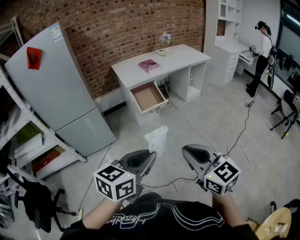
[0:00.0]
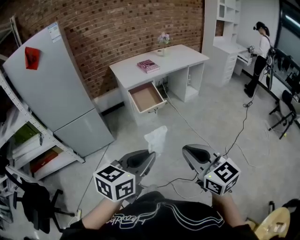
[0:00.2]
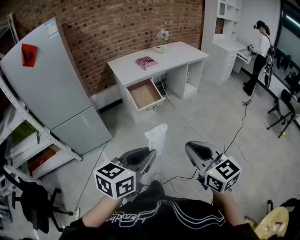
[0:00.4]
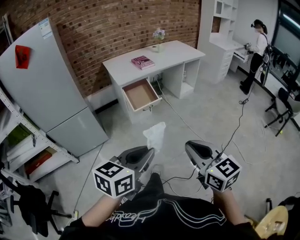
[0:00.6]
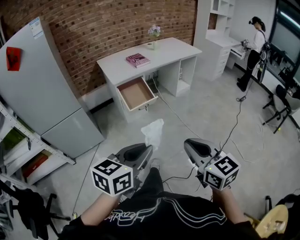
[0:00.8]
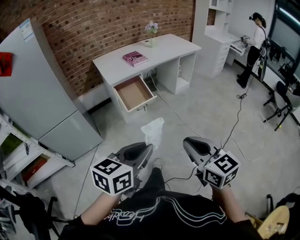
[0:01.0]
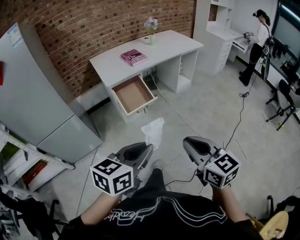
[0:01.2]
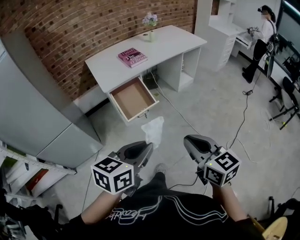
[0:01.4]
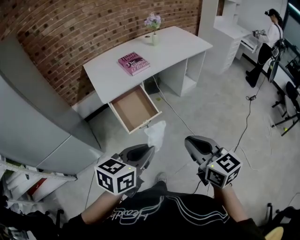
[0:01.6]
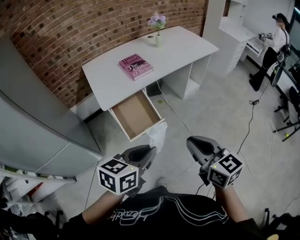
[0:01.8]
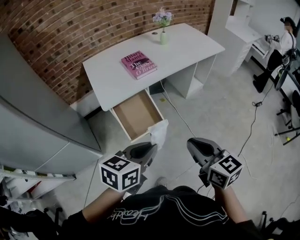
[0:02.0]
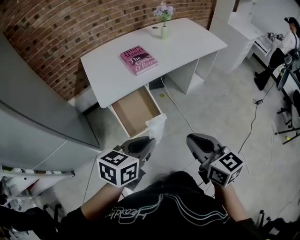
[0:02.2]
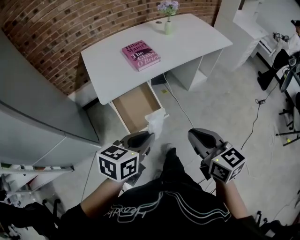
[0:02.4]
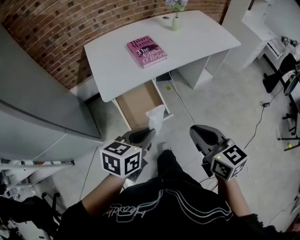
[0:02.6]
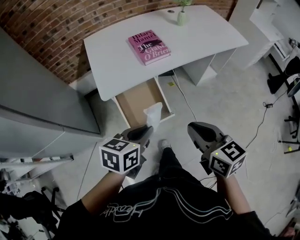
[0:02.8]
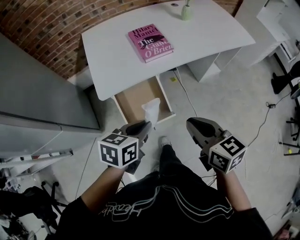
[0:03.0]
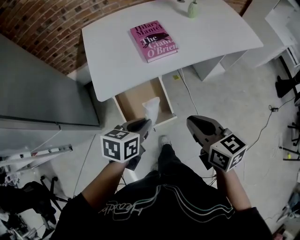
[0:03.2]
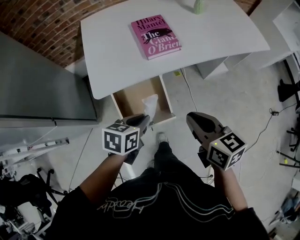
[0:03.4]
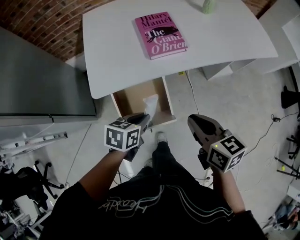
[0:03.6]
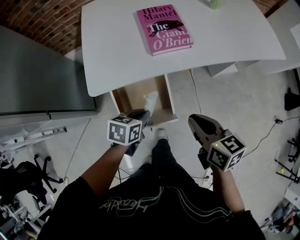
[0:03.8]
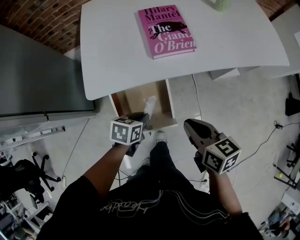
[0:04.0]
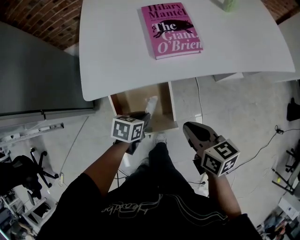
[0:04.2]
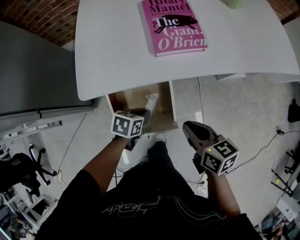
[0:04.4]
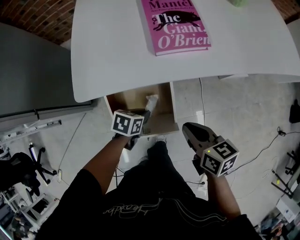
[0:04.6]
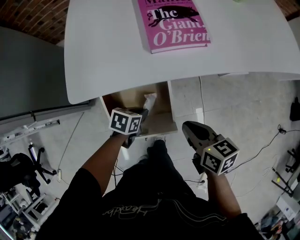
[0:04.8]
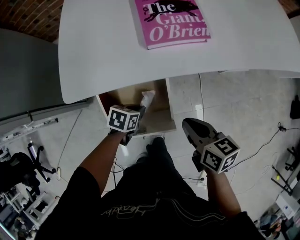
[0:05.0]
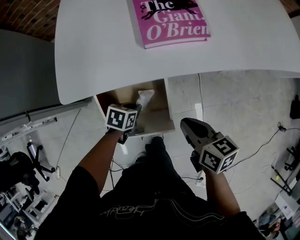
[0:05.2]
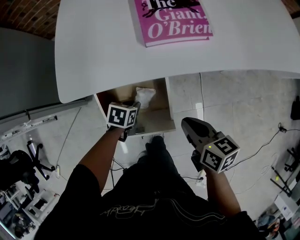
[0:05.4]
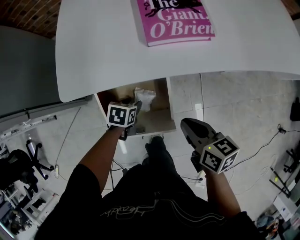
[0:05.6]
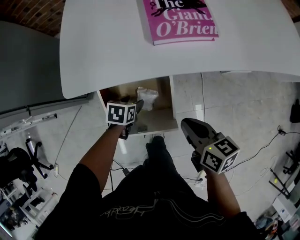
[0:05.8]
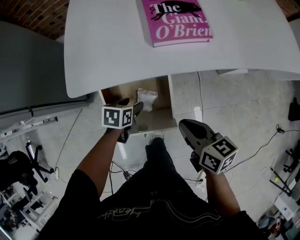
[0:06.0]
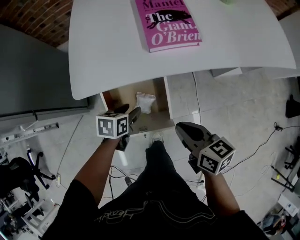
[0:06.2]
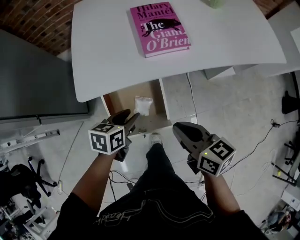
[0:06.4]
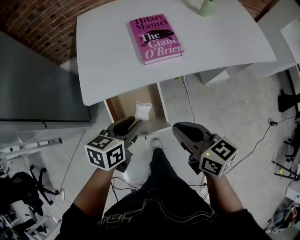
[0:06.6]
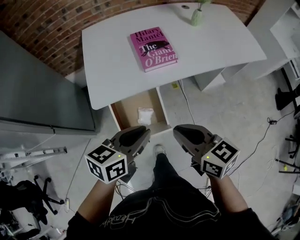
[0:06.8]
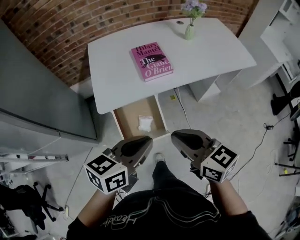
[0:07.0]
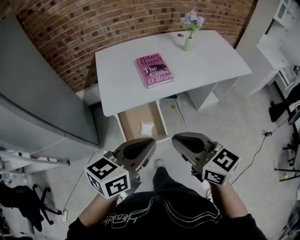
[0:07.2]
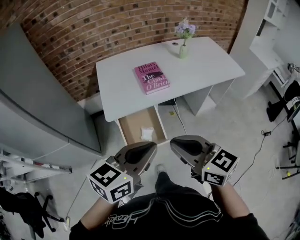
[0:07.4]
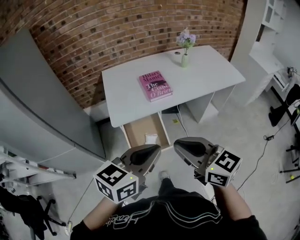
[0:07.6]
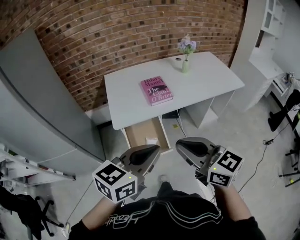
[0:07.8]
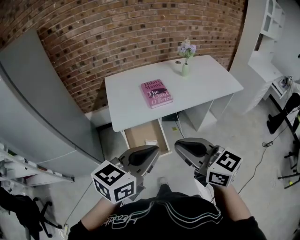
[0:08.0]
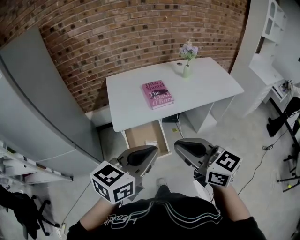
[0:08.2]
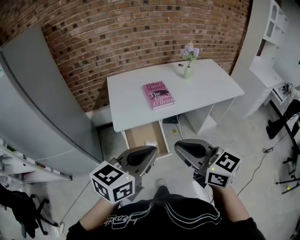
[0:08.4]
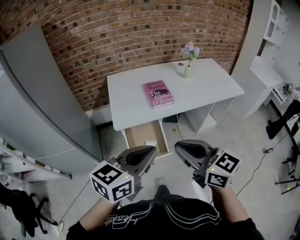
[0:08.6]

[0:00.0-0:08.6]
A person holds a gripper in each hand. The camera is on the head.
0:00.0 to 0:01.4: The two grippers go some 35 cm forward.
0:01.4 to 0:02.8: Both grippers travel together forward, some 40 cm.
0:02.8 to 0:04.4: Both grippers travel together downward and forward, some 35 cm. The right gripper changes its angle by roughly 20 degrees. The left gripper turns by some 30 degrees.
0:04.4 to 0:05.8: The two grippers go about 10 cm downward. The left gripper opens.
0:05.8 to 0:07.2: The right gripper shifts roughly 40 cm upward and backward, and swivels about 30 degrees; the left gripper travels upward by about 50 cm, angles its fingers upward, by approximately 50 degrees, and closes.
0:07.2 to 0:08.6: Both grippers travel together upward and backward, about 10 cm.

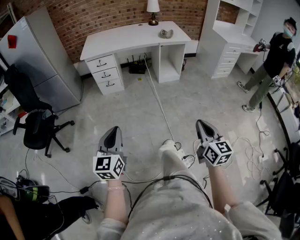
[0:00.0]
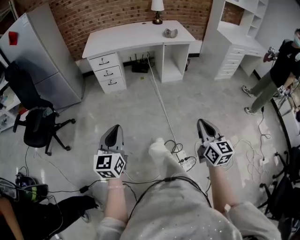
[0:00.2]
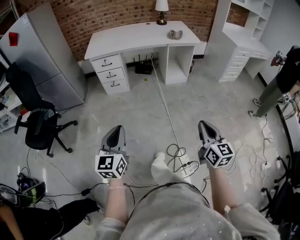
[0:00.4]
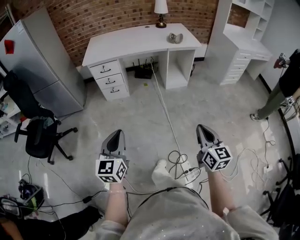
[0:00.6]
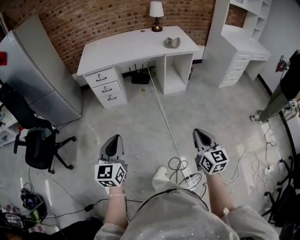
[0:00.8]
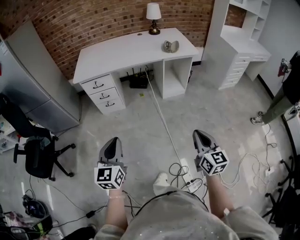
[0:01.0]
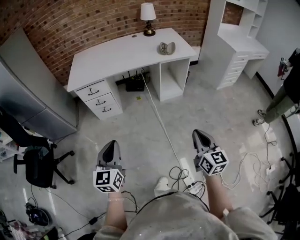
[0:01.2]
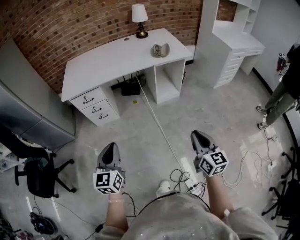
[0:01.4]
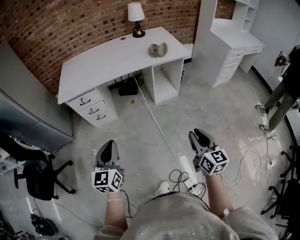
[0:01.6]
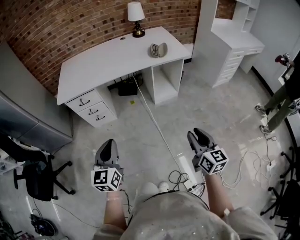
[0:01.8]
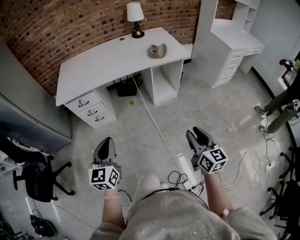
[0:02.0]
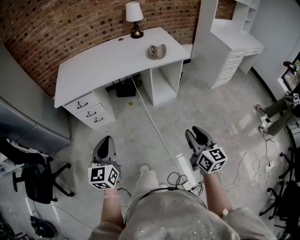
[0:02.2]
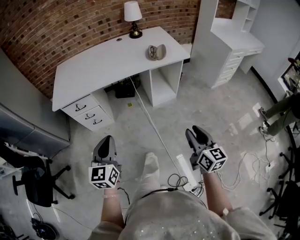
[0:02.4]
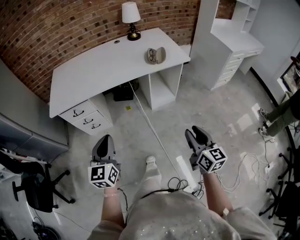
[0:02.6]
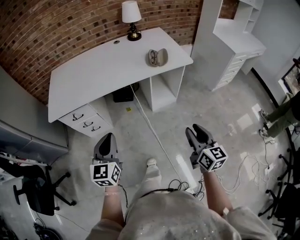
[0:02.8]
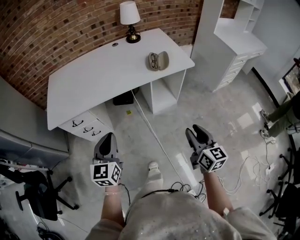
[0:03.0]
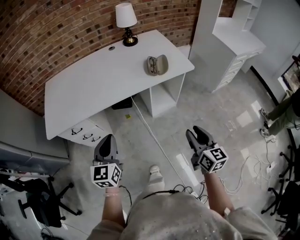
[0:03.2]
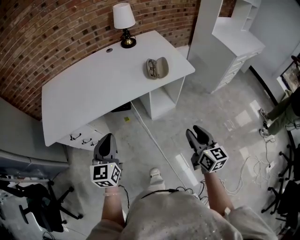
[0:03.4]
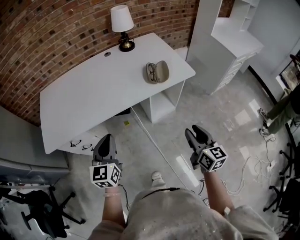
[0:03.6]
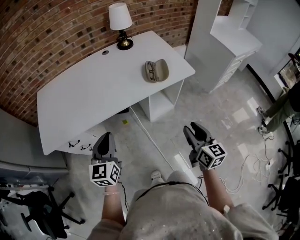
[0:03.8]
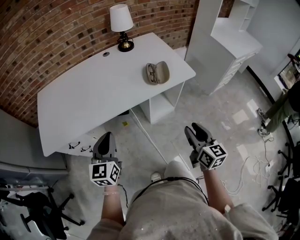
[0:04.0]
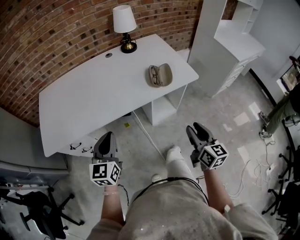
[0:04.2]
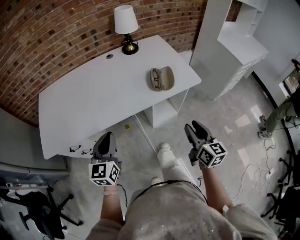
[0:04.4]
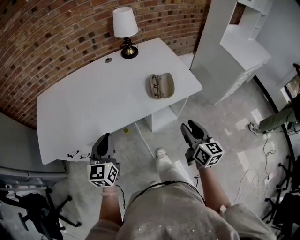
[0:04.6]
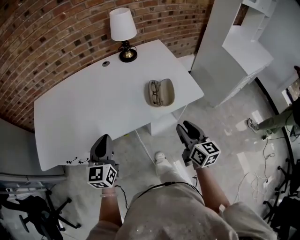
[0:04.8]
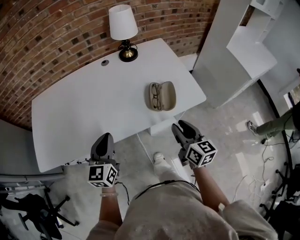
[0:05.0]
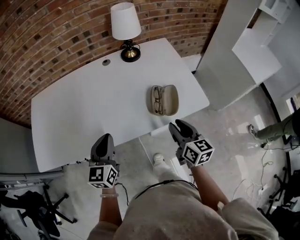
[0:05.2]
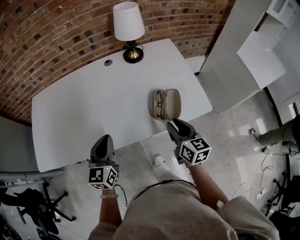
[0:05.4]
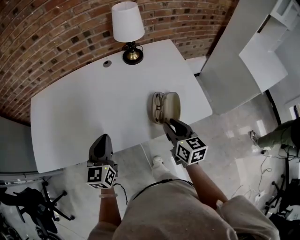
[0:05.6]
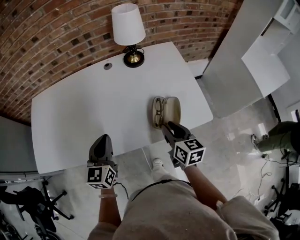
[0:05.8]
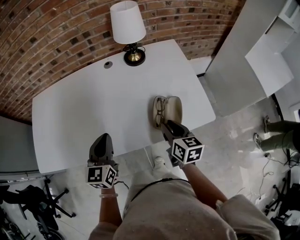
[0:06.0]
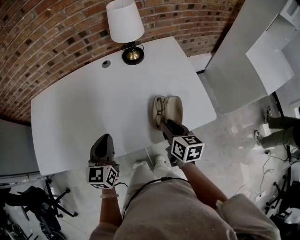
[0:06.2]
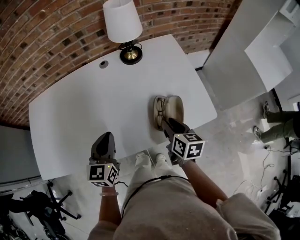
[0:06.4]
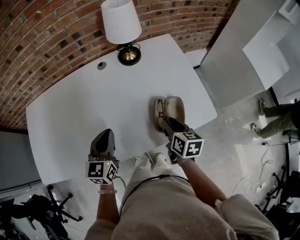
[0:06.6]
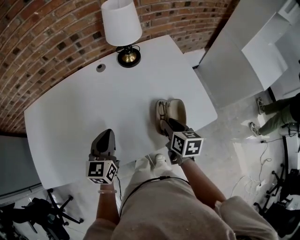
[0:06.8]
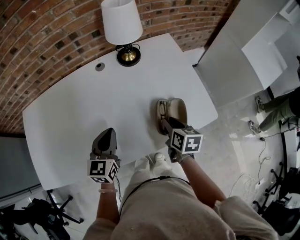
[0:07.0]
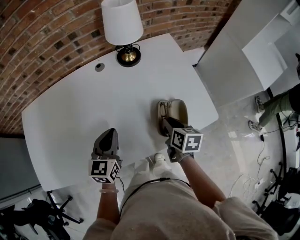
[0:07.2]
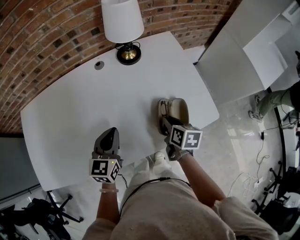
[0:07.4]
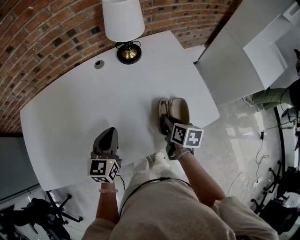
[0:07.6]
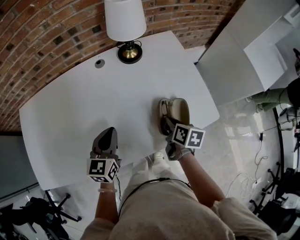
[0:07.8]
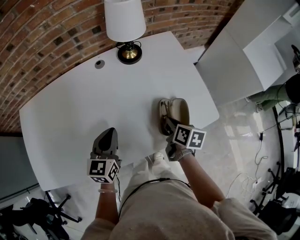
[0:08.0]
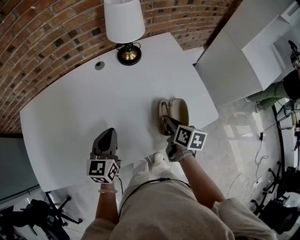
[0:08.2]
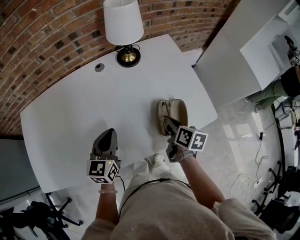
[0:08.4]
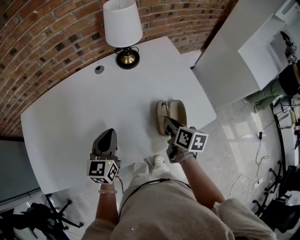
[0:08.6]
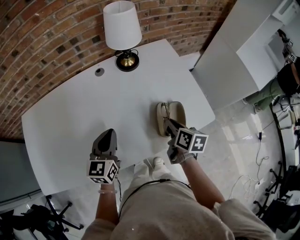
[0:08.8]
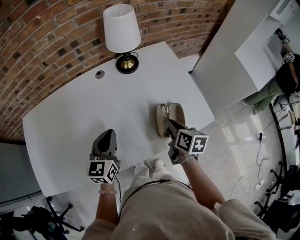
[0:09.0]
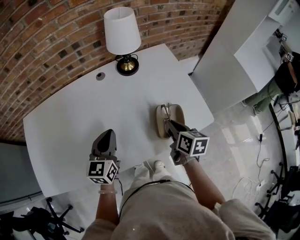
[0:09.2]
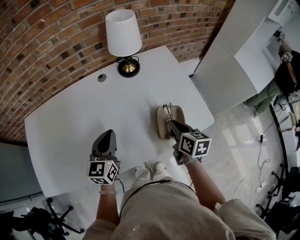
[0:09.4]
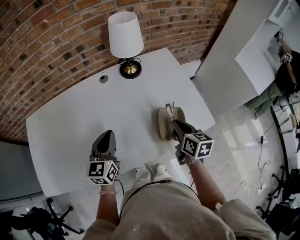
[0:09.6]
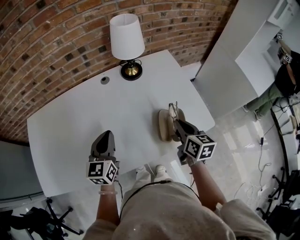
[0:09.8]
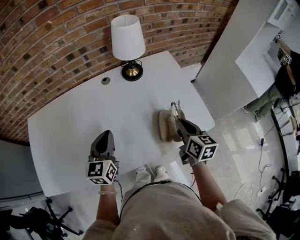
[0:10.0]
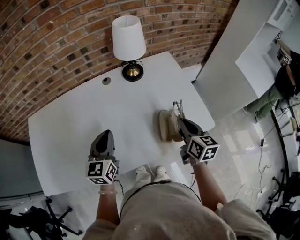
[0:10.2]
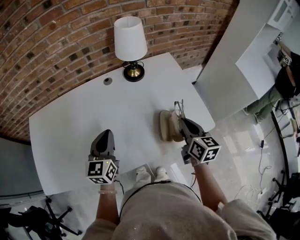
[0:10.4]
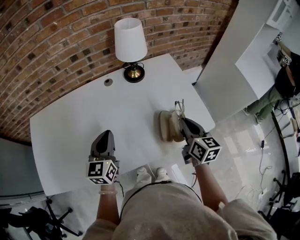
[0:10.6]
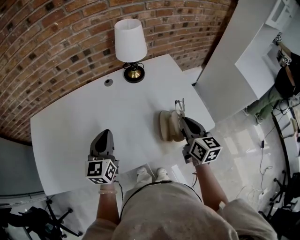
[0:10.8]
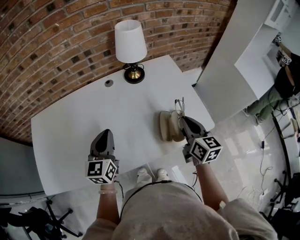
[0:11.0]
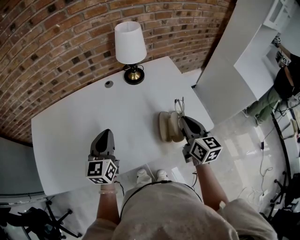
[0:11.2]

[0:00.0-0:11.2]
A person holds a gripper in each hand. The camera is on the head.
0:00.0 to 0:01.6: Both grippers travel together forward, about 35 cm. The right gripper opens its fingers.
0:01.6 to 0:03.2: The grippers both shift forward by some 25 cm.
0:03.2 to 0:04.8: Both grippers move forward, approximately 25 cm.
0:04.8 to 0:06.4: Both grippers move forward, roughly 15 cm. The right gripper swivels about 20 degrees.
0:06.4 to 0:08.0: The right gripper moves approximately 5 cm, and closes up; the left gripper travels forward by roughly 5 cm.
0:08.0 to 0:09.6: The right gripper heads upward, covering approximately 10 cm, and turns by about 20 degrees.
0:09.6 to 0:11.2: The right gripper is displaced upward by approximately 5 cm.

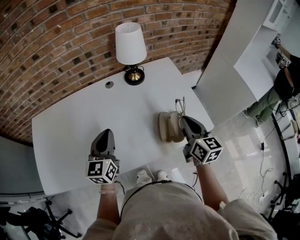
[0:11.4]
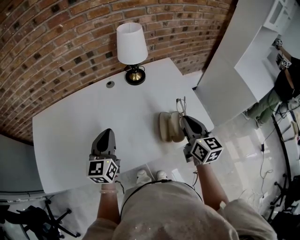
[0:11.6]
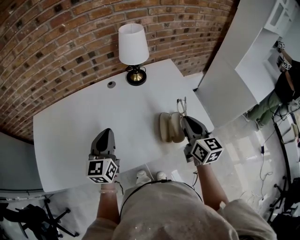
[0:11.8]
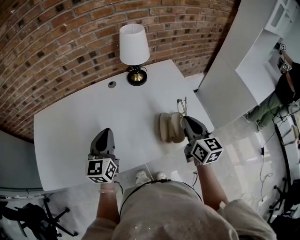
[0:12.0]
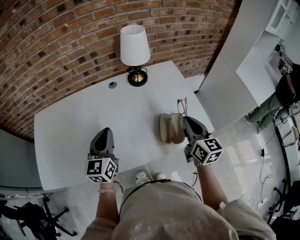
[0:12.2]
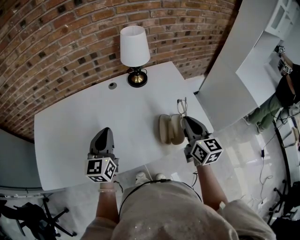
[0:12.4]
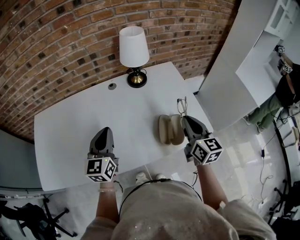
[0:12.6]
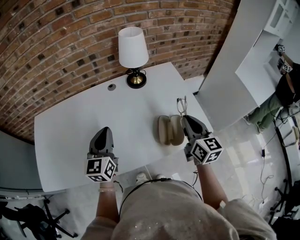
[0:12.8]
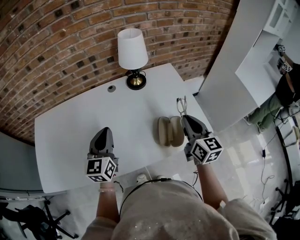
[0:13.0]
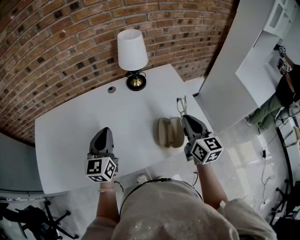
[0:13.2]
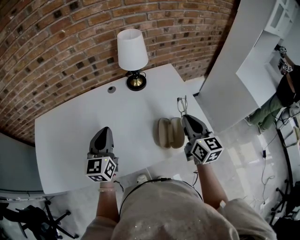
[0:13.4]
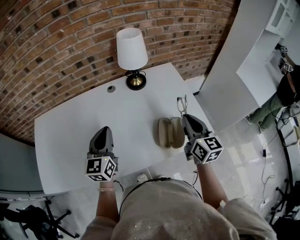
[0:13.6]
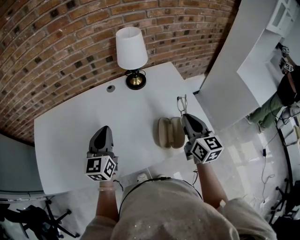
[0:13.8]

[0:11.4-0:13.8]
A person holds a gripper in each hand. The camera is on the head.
0:11.4 to 0:13.8: The grippers make only small movements.

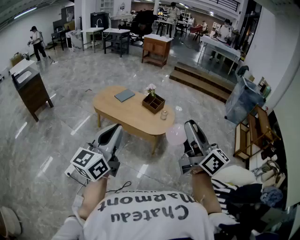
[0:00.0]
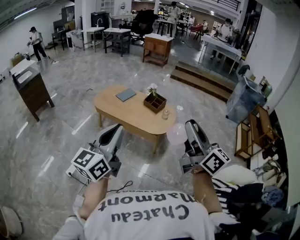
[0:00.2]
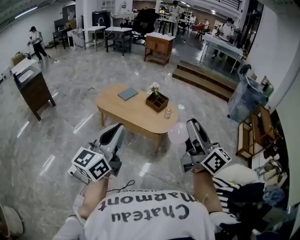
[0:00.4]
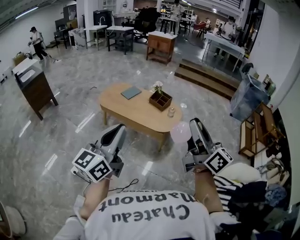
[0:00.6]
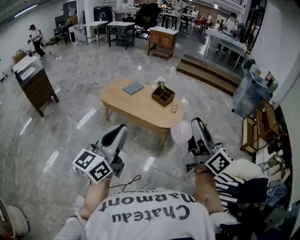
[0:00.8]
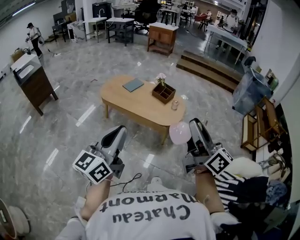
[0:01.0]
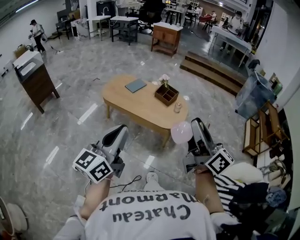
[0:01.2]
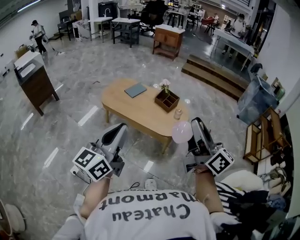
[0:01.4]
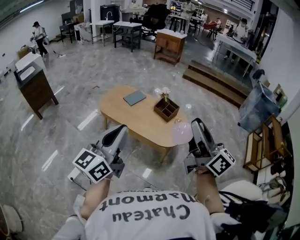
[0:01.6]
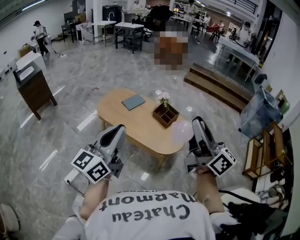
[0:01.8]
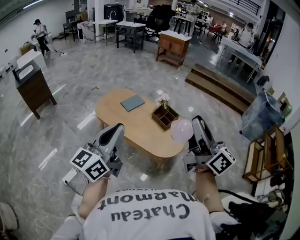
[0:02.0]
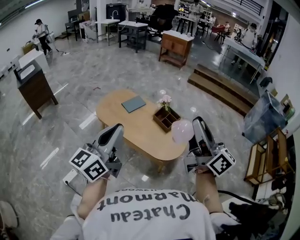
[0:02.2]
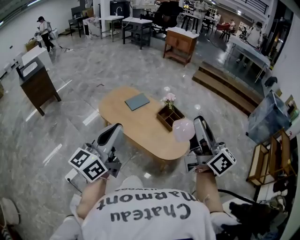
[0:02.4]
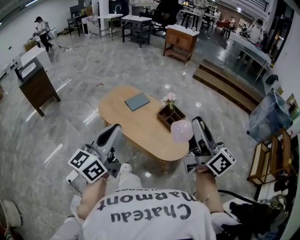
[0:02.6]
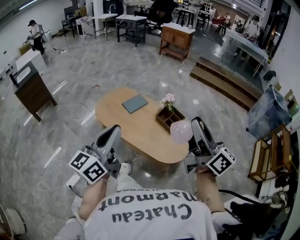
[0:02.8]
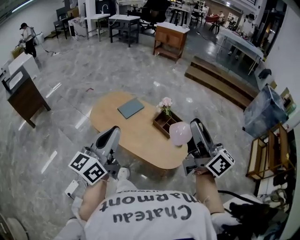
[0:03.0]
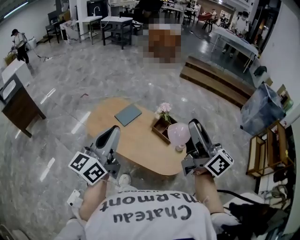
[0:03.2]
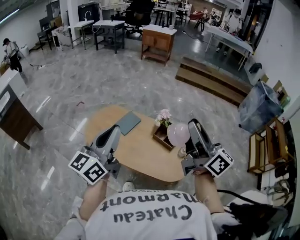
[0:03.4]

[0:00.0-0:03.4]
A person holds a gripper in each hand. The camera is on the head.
0:00.0 to 0:01.6: Both grippers move forward, roughly 20 cm.
0:01.6 to 0:03.4: The grippers both shift forward by roughly 40 cm.
